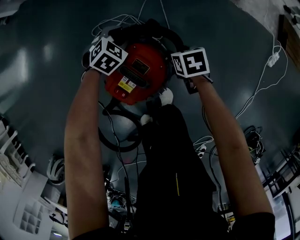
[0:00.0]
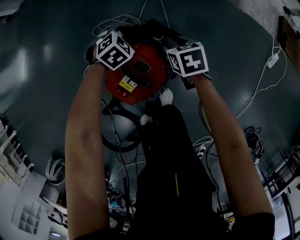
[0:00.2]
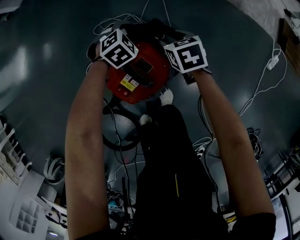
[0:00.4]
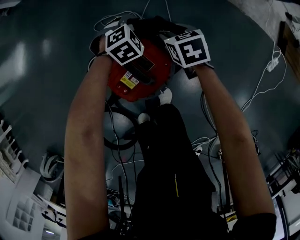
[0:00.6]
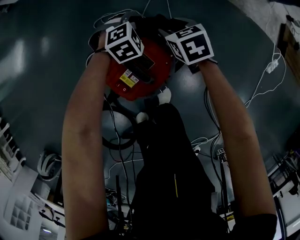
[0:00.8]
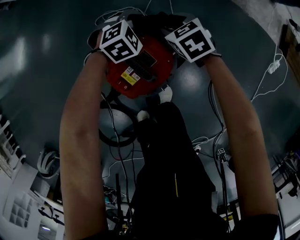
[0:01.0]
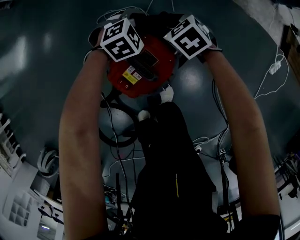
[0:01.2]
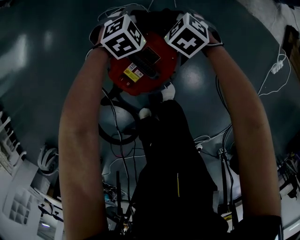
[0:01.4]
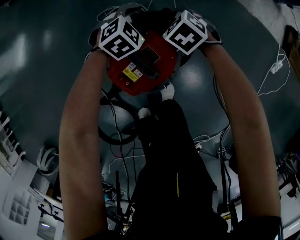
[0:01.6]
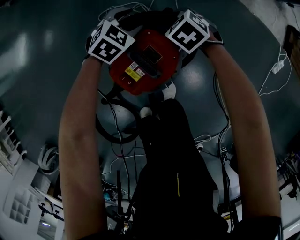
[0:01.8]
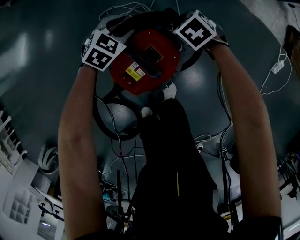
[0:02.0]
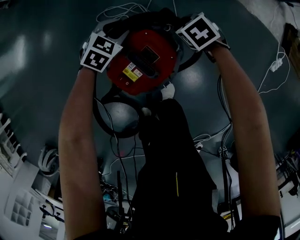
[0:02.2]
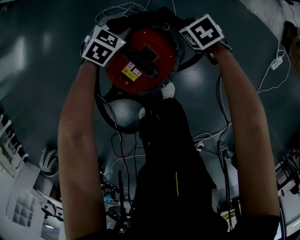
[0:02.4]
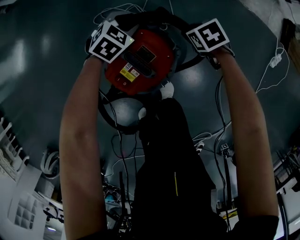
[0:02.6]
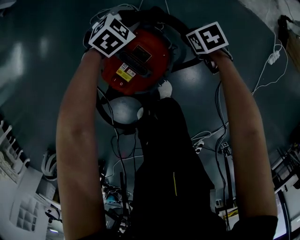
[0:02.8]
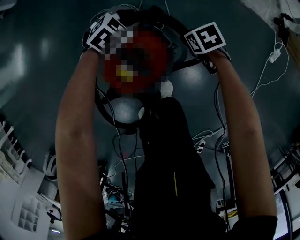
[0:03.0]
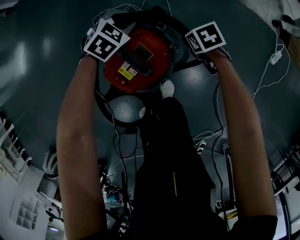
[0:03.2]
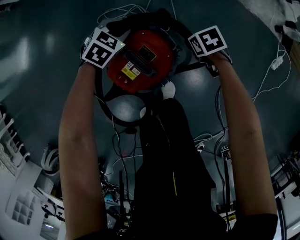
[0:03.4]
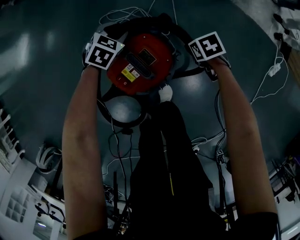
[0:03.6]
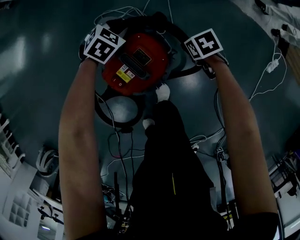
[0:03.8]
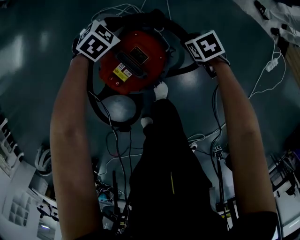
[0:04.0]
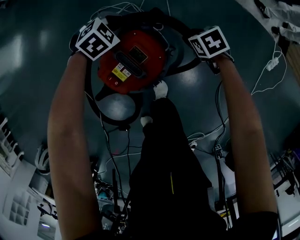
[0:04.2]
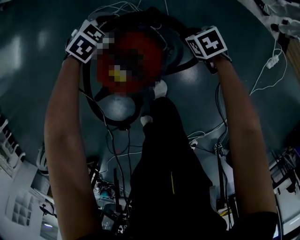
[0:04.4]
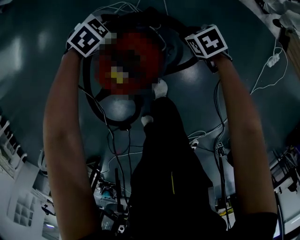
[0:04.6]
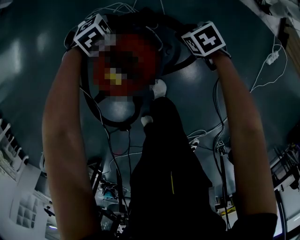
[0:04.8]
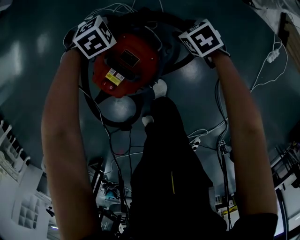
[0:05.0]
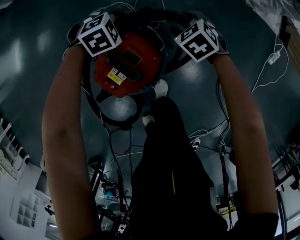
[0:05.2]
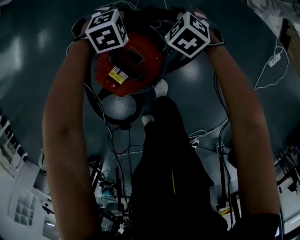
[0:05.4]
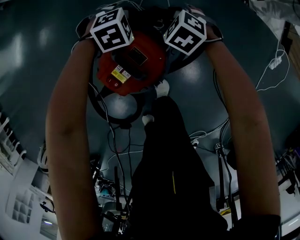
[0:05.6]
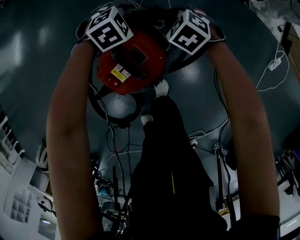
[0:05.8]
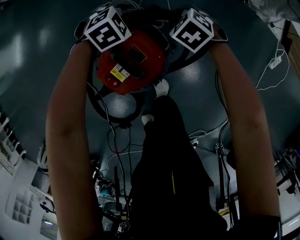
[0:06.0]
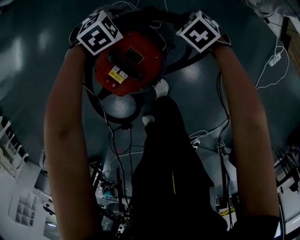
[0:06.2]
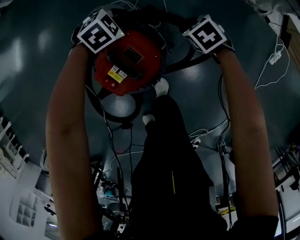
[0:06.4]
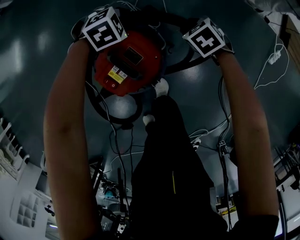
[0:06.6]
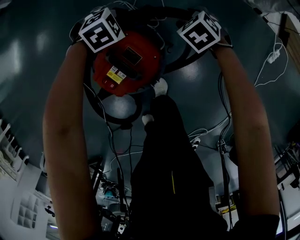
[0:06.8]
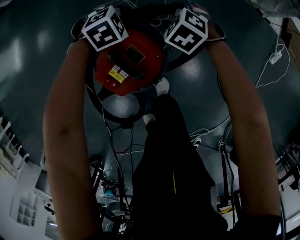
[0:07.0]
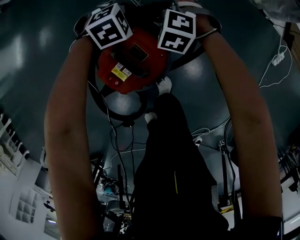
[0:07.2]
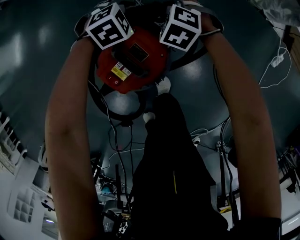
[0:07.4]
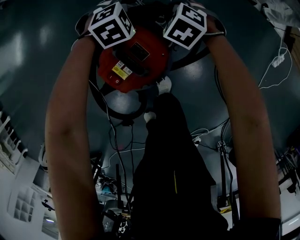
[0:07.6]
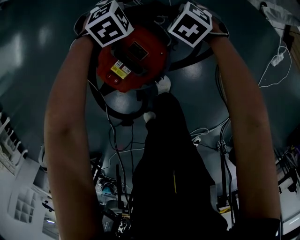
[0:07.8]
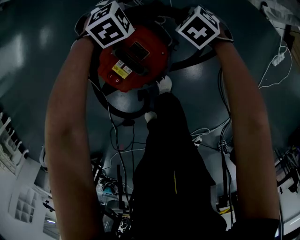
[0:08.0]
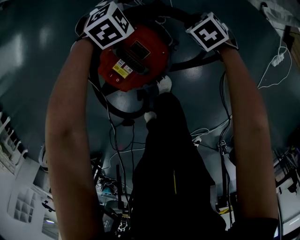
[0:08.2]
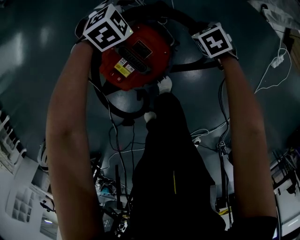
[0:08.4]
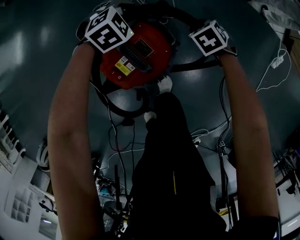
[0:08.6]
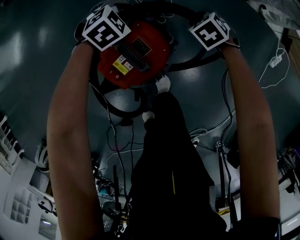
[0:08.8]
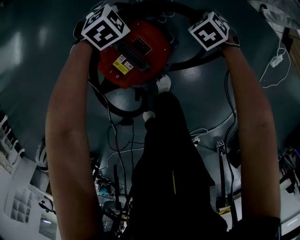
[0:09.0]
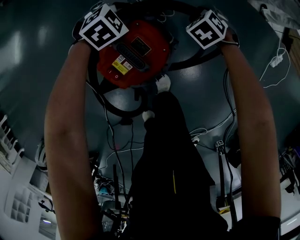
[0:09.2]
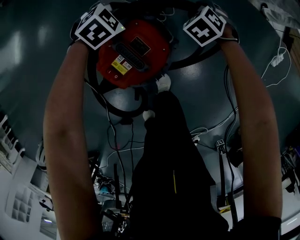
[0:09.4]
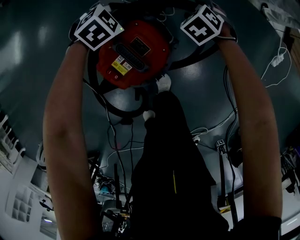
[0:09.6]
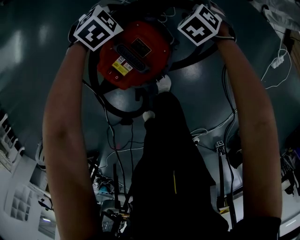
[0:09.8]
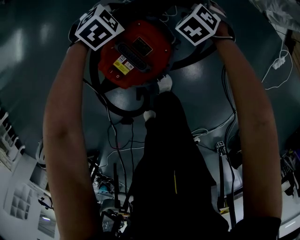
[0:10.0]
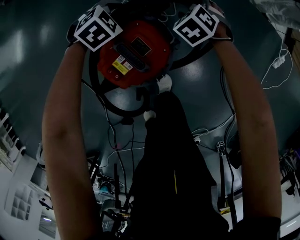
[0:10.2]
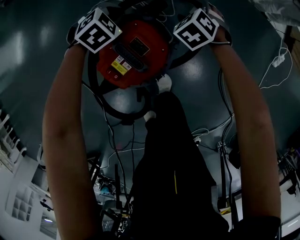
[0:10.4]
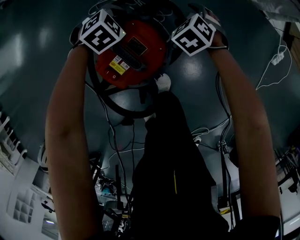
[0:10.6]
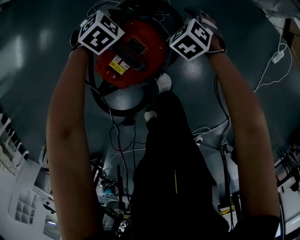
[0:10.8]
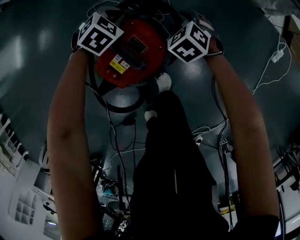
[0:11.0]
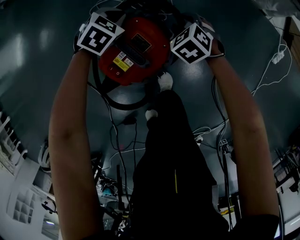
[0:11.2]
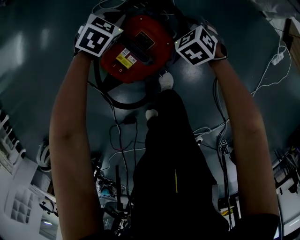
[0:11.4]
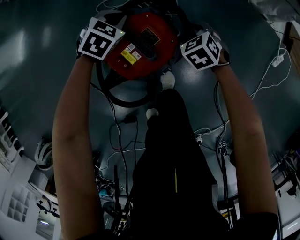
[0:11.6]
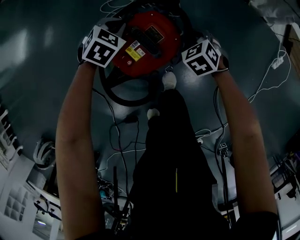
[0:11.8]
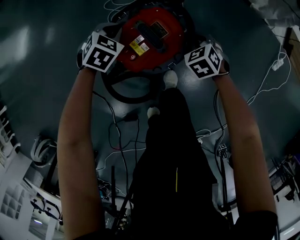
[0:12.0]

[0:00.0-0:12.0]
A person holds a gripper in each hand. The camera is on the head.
0:00.0 to 0:01.6: The right gripper travels to the left and forward by approximately 10 cm, and rotates around the line of its fingers by roughly 50 degrees, counterclockwise from behind.
0:01.6 to 0:03.0: The left gripper travels to the left and back again, some 5 cm each way; the right gripper shifts some 15 cm to the right and backward, and changes its angle by roughly 40 degrees.
0:04.4 to 0:06.0: The left gripper ends up approximately 5 cm from where it was. Meanwhile the right gripper moves about 10 cm, changes its angle by some 30 degrees, and opens and closes again.
0:06.0 to 0:07.6: The right gripper goes to the right and returns, about 5 cm each way, and opens and closes again.
0:07.6 to 0:09.0: The right gripper changes place by roughly 10 cm.
0:09.0 to 0:10.4: The right gripper opens up; the left gripper closes.
0:10.4 to 0:12.0: The left gripper travels backward and to the left by approximately 15 cm, and rotates roughly 20 degrees; the right gripper is displaced backward by approximately 15 cm, and closes up.

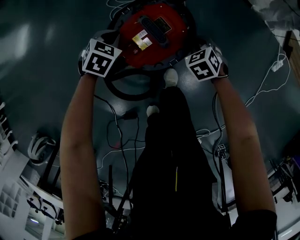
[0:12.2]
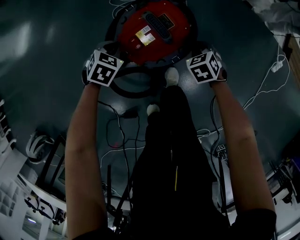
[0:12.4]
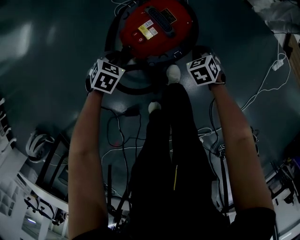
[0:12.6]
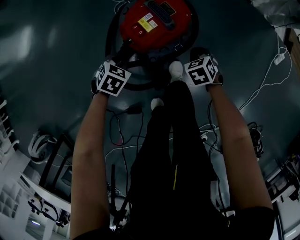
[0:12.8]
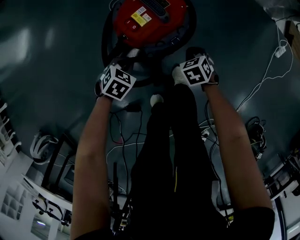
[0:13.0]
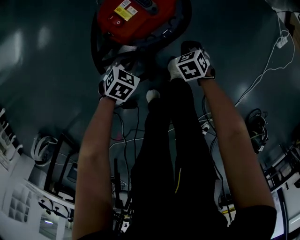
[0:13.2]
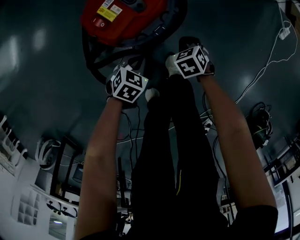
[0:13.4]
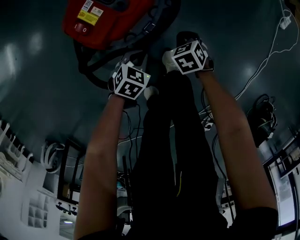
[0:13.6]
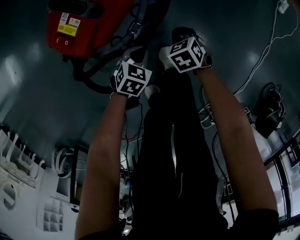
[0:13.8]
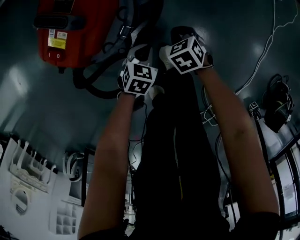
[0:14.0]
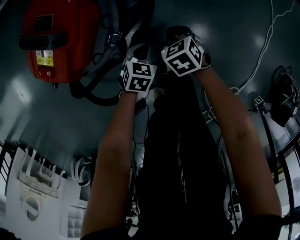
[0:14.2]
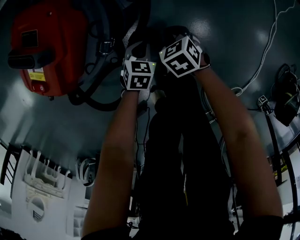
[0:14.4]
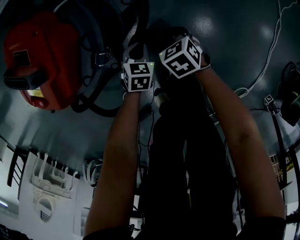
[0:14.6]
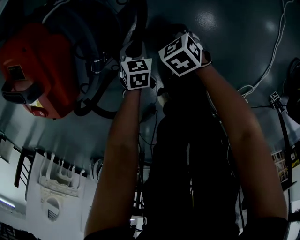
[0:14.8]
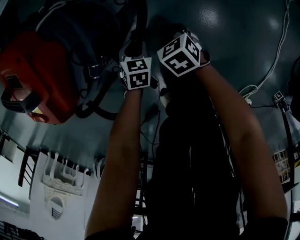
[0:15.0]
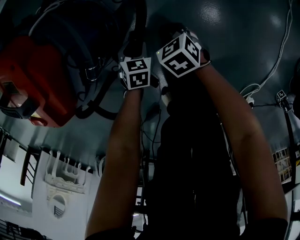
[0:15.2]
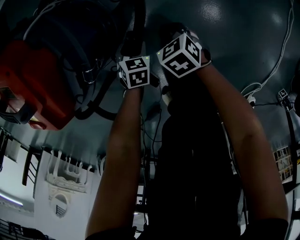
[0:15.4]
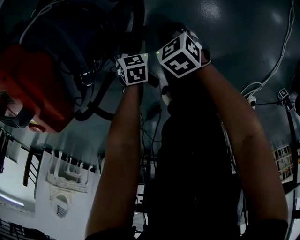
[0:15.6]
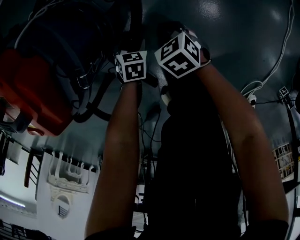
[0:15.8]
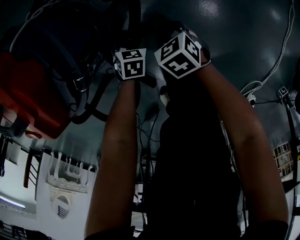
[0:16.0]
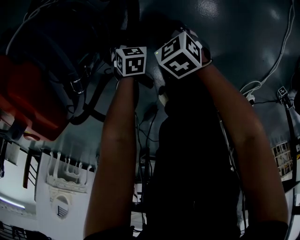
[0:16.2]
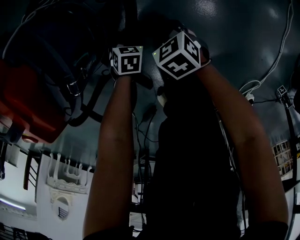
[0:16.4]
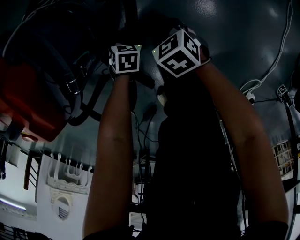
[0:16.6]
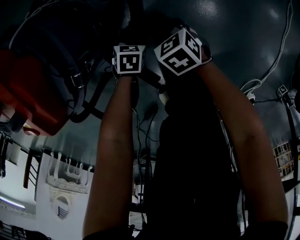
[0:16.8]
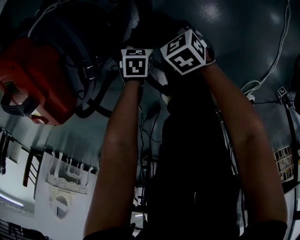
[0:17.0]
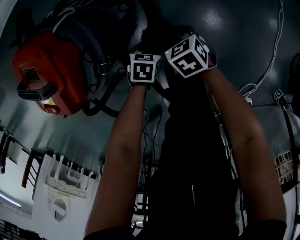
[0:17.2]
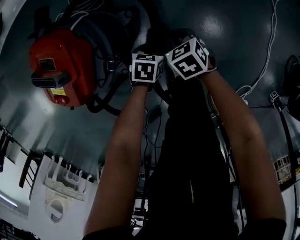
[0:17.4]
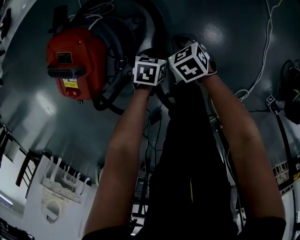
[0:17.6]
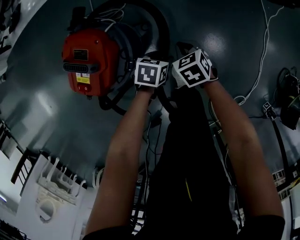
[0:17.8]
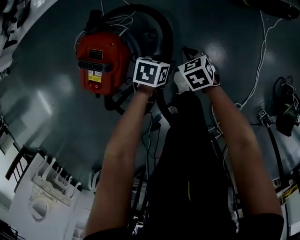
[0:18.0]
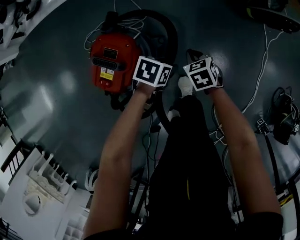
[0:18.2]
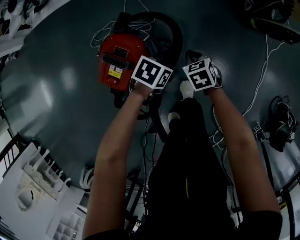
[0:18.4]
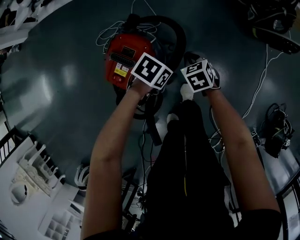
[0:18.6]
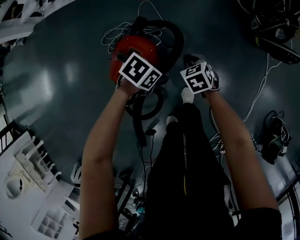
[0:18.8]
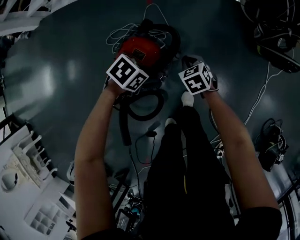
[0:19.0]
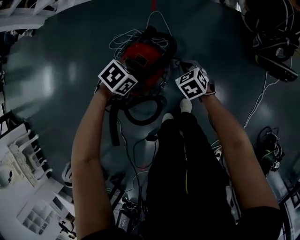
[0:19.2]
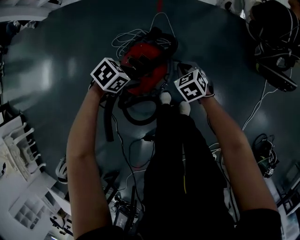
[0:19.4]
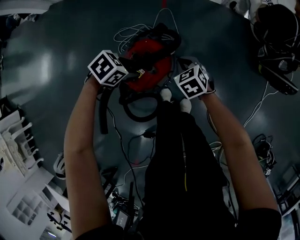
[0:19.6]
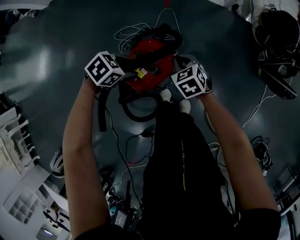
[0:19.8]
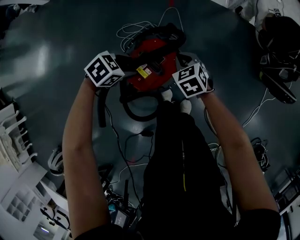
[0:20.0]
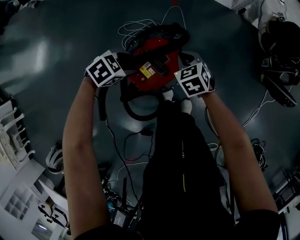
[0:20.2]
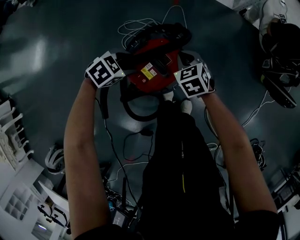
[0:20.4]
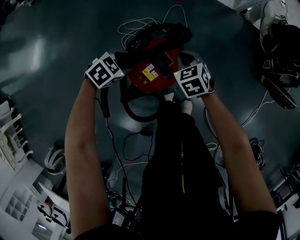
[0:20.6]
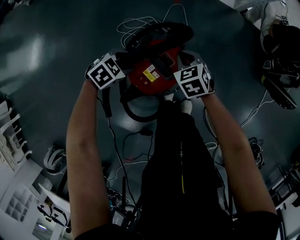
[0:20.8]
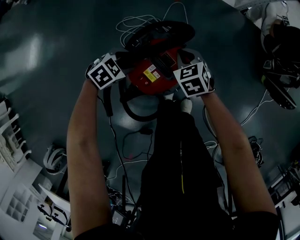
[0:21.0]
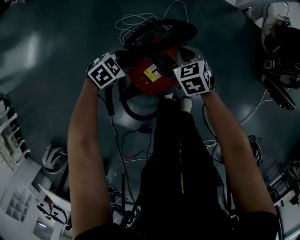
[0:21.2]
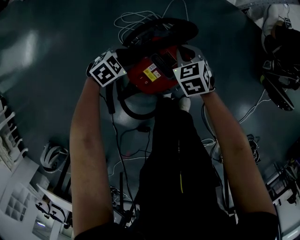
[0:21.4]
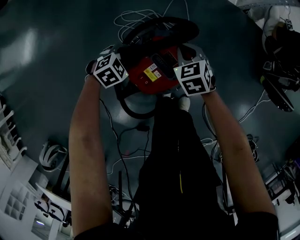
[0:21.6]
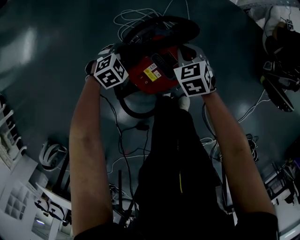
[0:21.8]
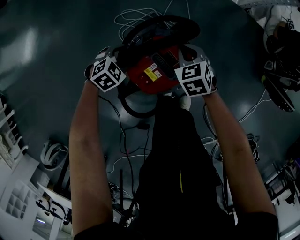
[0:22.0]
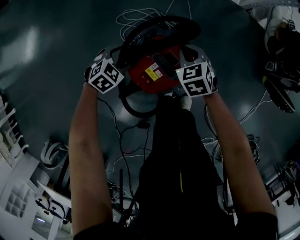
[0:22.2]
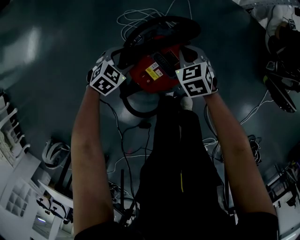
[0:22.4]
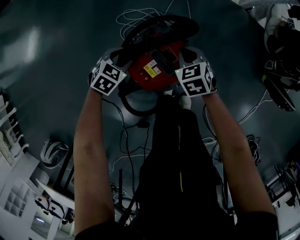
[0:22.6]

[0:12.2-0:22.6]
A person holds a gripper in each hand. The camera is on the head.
0:12.2 to 0:13.6: The left gripper heads to the right, backward and downward, covering approximately 30 cm. Meanwhile the right gripper moves downward, backward and to the right, approximately 25 cm, and turns by about 20 degrees.
0:13.6 to 0:15.2: The left gripper heads downward, covering about 20 cm, and opens. The right gripper moves downward, roughly 10 cm, and changes its angle by about 20 degrees.
0:15.2 to 0:16.6: The left gripper shifts roughly 5 cm downward.
0:16.6 to 0:18.2: Both grippers travel together upward, approximately 35 cm. The left gripper changes its angle by about 20 degrees.
0:18.2 to 0:19.6: The left gripper ends up approximately 30 cm from where it was. The right gripper shifts by roughly 20 cm, and swivels about 30 degrees.
0:19.6 to 0:21.2: The left gripper moves roughly 15 cm. Meanwhile the right gripper ends up some 15 cm from where it was.
0:21.2 to 0:22.6: There are only small adjustments of the grippers.

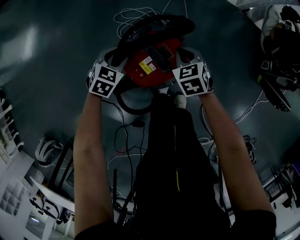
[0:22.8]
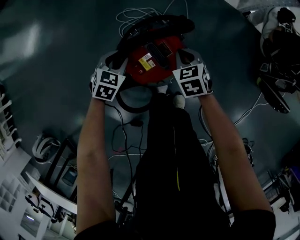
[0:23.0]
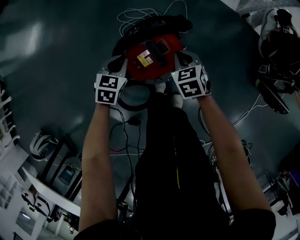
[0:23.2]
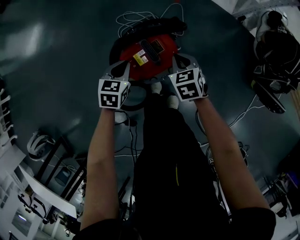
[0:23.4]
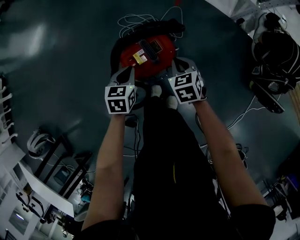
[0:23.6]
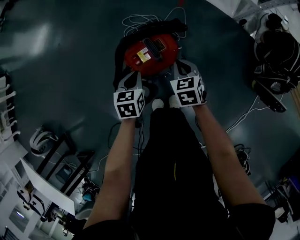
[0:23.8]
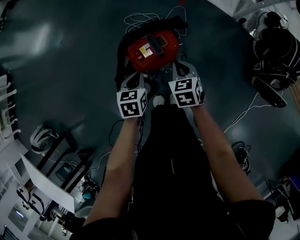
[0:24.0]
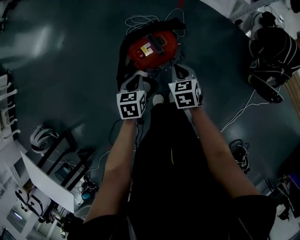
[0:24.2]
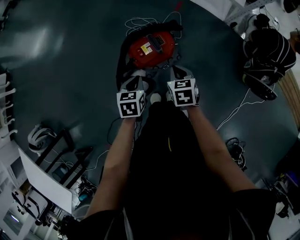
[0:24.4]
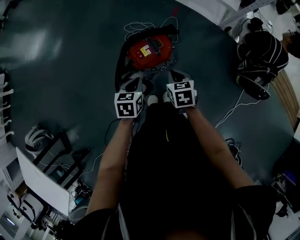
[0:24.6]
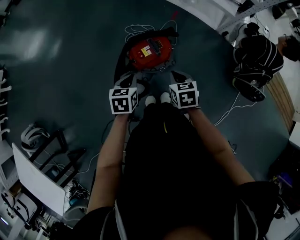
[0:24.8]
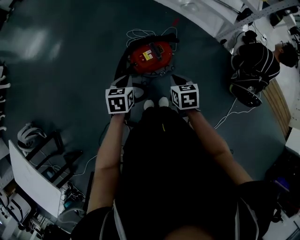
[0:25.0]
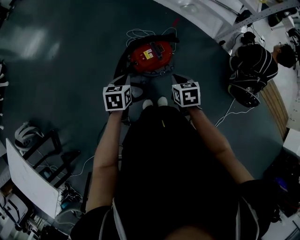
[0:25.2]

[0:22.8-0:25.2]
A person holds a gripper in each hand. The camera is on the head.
0:22.8 to 0:24.0: The grippers both shift backward and upward by roughly 20 cm. The left gripper rolls counterclockwise, seen from behind, by roughly 40 degrees, and closes its fingers.
0:24.0 to 0:25.2: The right gripper moves upward and backward, some 15 cm. Meanwhile the left gripper travels upward, to the left and backward by approximately 20 cm.
